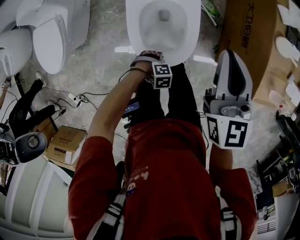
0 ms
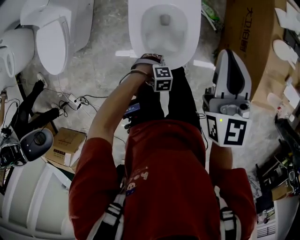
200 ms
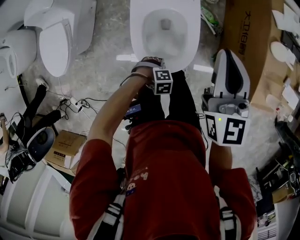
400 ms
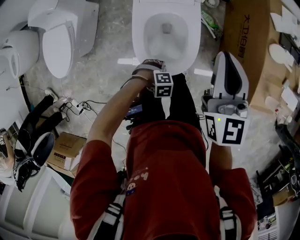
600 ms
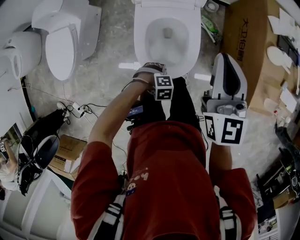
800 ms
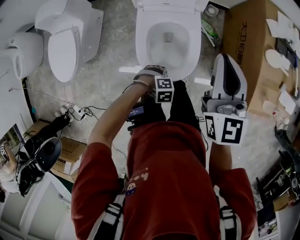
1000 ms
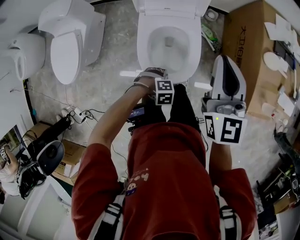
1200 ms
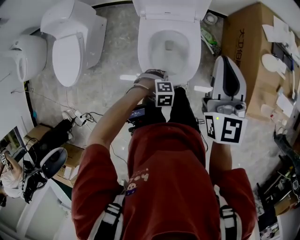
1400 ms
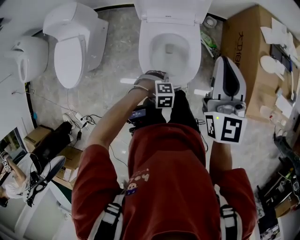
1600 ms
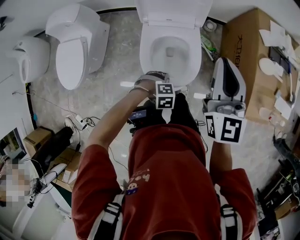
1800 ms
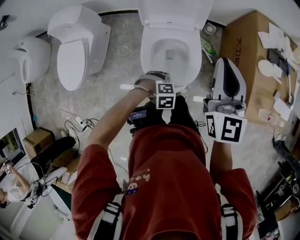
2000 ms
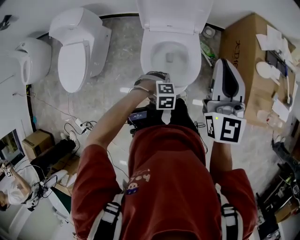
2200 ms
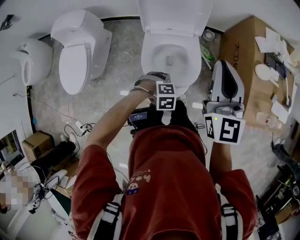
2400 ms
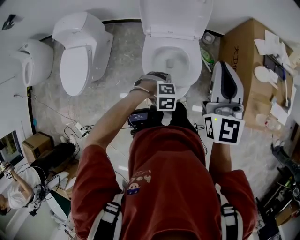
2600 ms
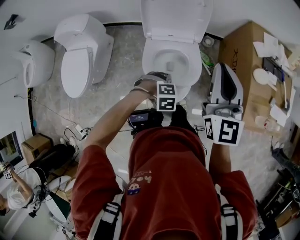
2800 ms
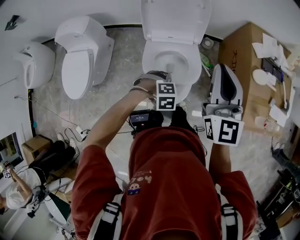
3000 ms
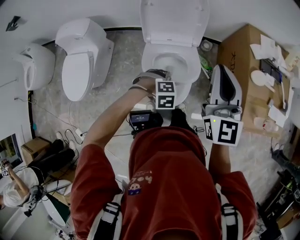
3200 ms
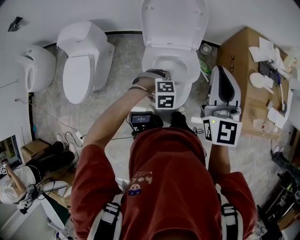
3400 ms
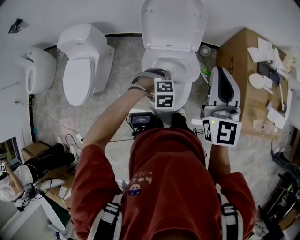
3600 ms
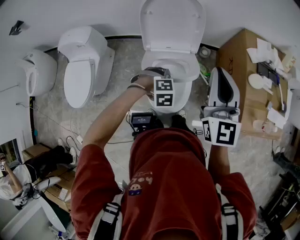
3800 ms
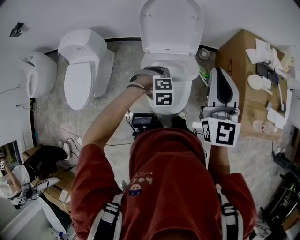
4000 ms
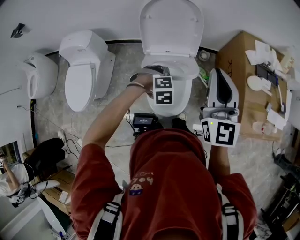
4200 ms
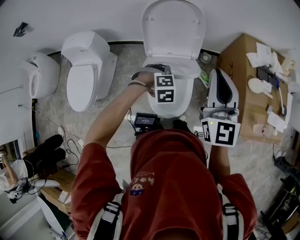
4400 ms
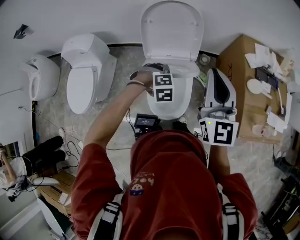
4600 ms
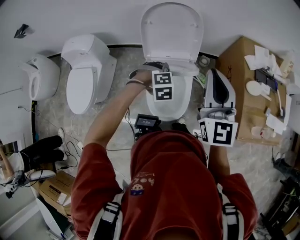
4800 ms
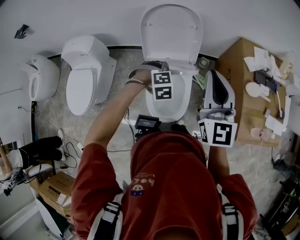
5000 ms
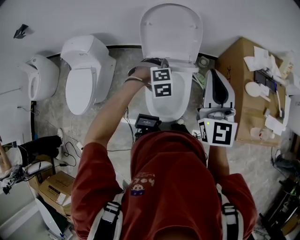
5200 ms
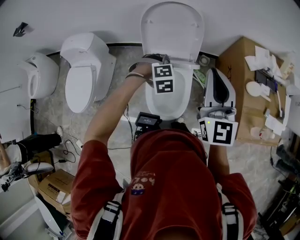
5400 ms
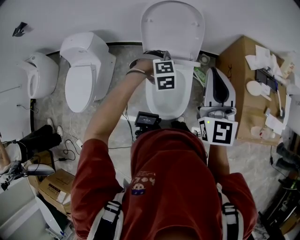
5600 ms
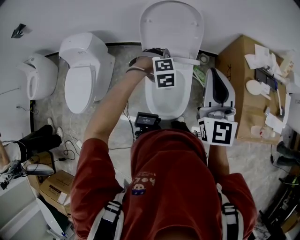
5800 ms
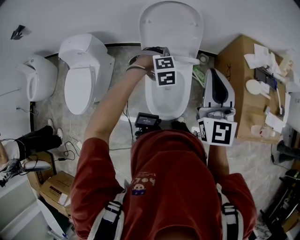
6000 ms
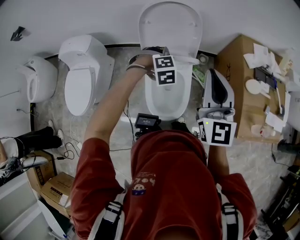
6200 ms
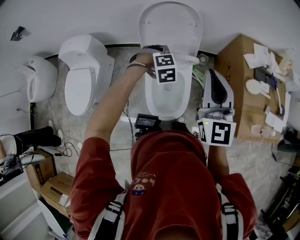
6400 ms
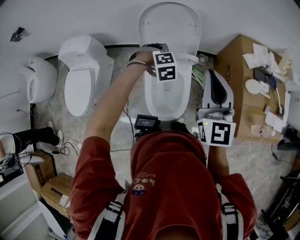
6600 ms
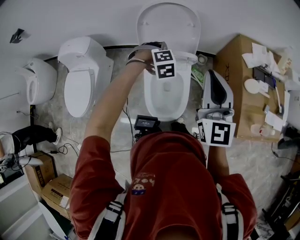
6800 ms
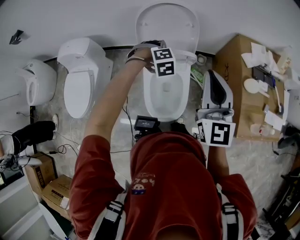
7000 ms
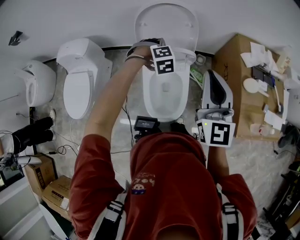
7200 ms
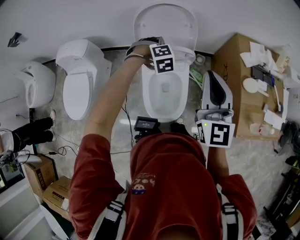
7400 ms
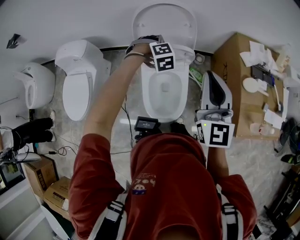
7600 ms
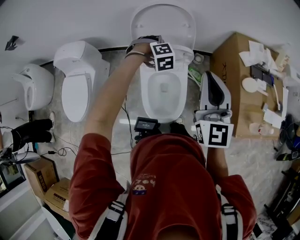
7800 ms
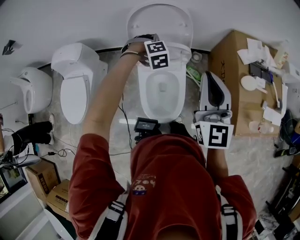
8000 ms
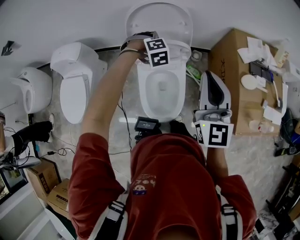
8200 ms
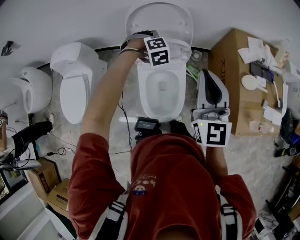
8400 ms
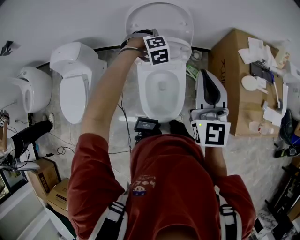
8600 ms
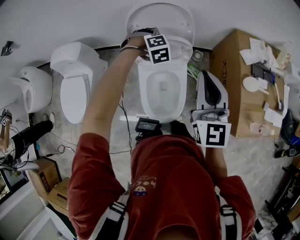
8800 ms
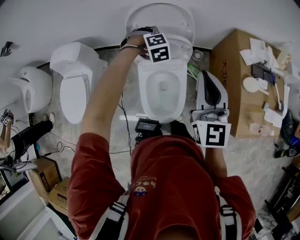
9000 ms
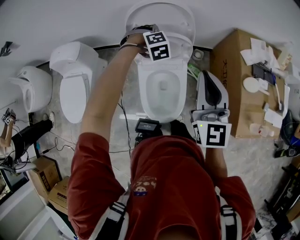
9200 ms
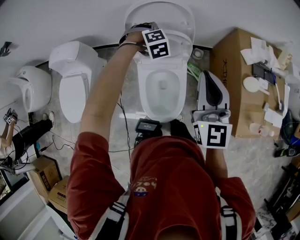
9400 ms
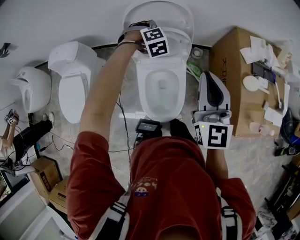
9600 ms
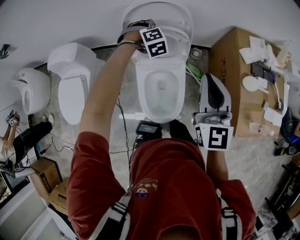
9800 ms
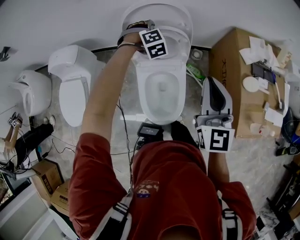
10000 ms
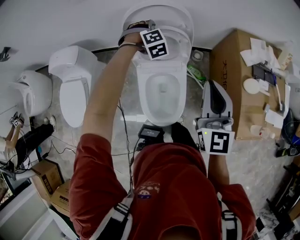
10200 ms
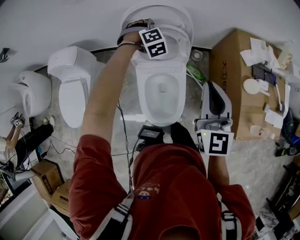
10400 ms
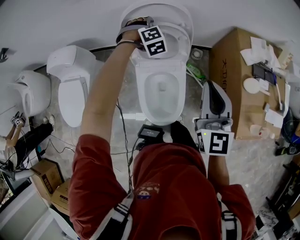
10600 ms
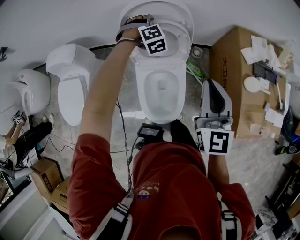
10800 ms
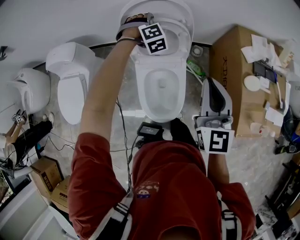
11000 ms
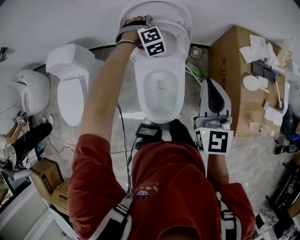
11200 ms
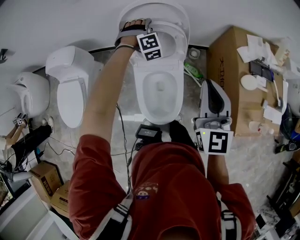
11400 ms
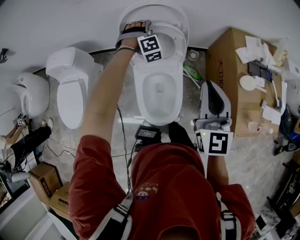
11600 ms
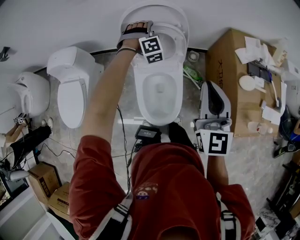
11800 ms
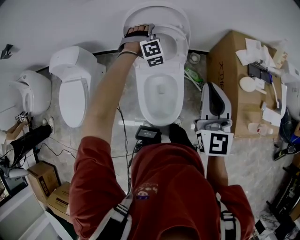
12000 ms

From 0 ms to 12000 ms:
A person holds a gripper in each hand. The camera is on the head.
From 0 ms to 1600 ms: Both grippers move upward, some 10 cm.
From 1600 ms to 3000 ms: The right gripper travels upward by about 5 cm; the left gripper goes about 10 cm upward.
From 3000 ms to 4400 ms: The left gripper moves roughly 10 cm.
From 4400 ms to 6000 ms: The left gripper is displaced forward by roughly 10 cm.
From 6000 ms to 7600 ms: The left gripper travels forward by approximately 10 cm.
From 7600 ms to 9000 ms: The left gripper shifts roughly 5 cm forward.
From 9000 ms to 10400 ms: The left gripper travels forward by about 5 cm.
From 10400 ms to 12000 ms: The grippers move only a little.

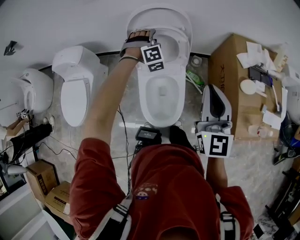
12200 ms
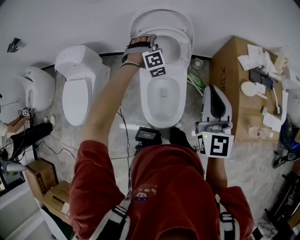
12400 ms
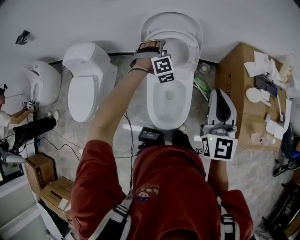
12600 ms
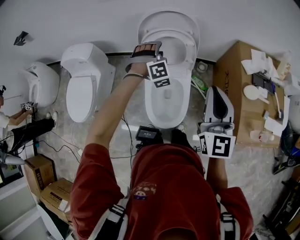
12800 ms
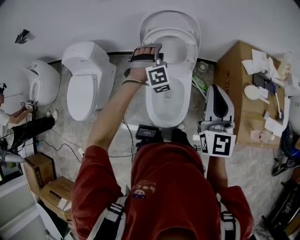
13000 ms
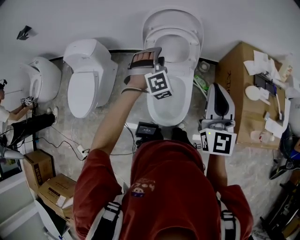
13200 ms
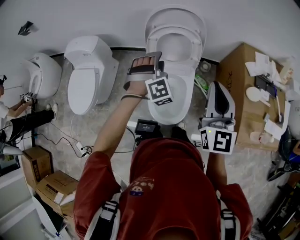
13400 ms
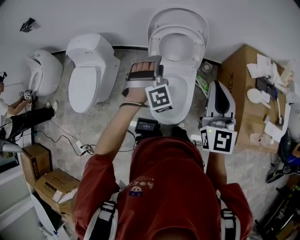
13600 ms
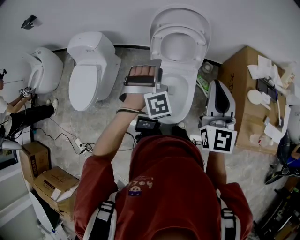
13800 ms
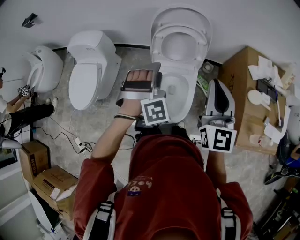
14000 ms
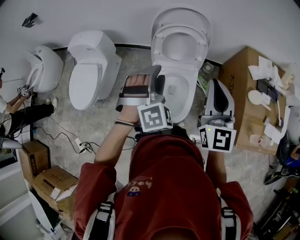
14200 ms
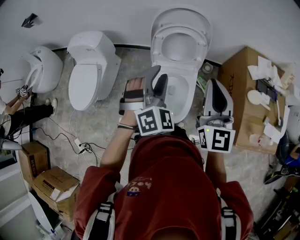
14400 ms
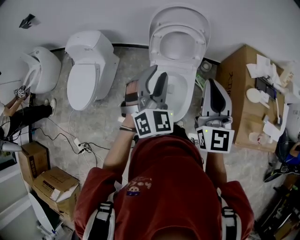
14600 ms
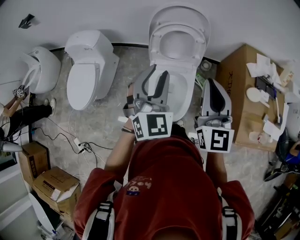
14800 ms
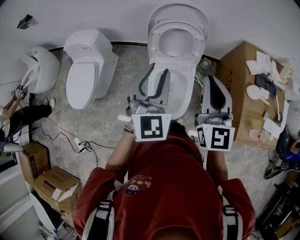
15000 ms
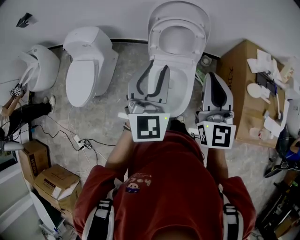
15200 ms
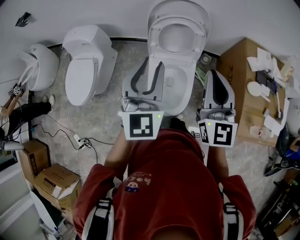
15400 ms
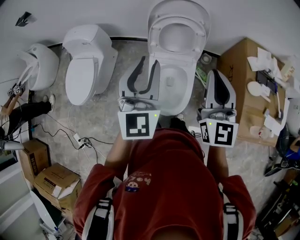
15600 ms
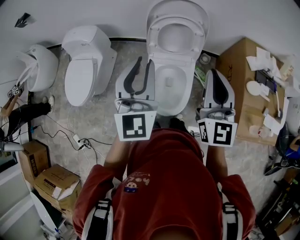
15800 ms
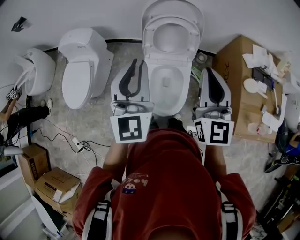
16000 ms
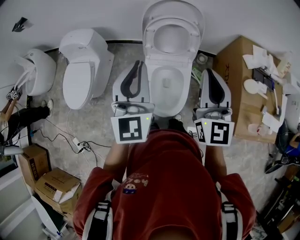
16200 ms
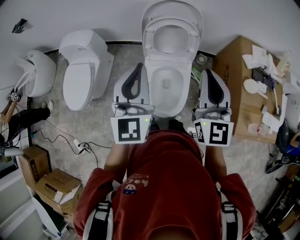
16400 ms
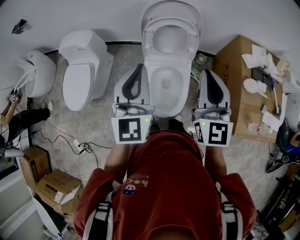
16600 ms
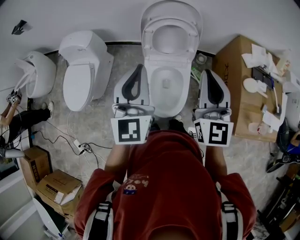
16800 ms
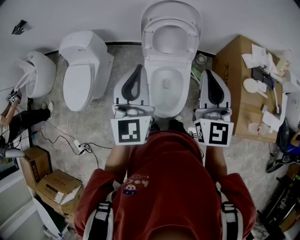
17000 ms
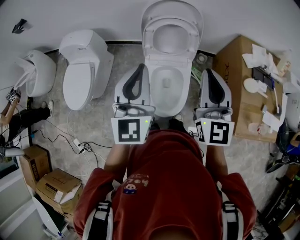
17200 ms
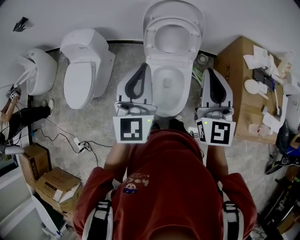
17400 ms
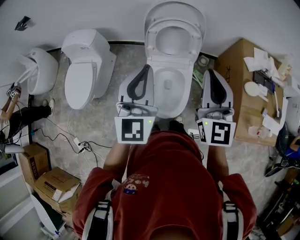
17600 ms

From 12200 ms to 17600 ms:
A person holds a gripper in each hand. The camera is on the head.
From 12200 ms to 13600 ms: The left gripper is displaced backward by approximately 20 cm.
From 13600 ms to 15000 ms: The left gripper travels upward and backward by some 15 cm, and rotates around the line of its fingers by about 50 degrees, counterclockwise from behind.
From 15000 ms to 16200 ms: The grippers stay close to where they were, moving slightly.
From 16200 ms to 17600 ms: There are only small adjustments of the grippers.

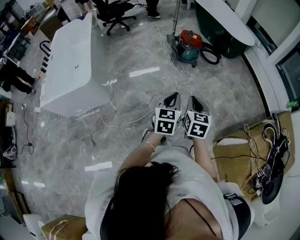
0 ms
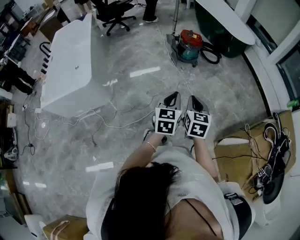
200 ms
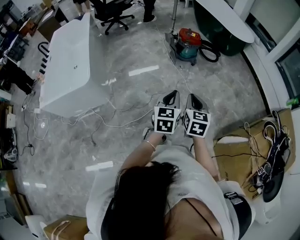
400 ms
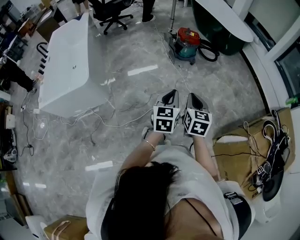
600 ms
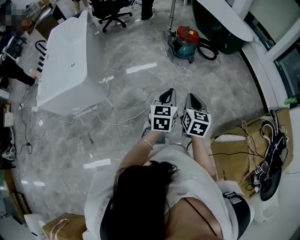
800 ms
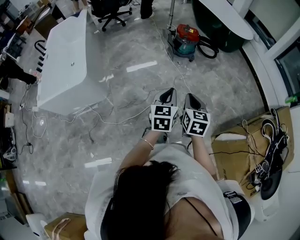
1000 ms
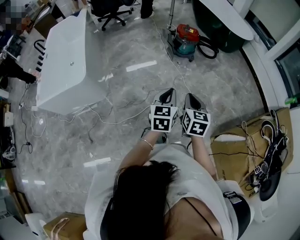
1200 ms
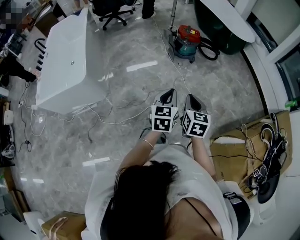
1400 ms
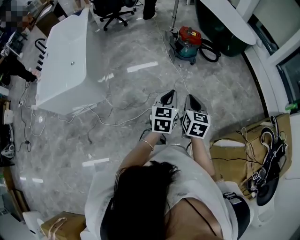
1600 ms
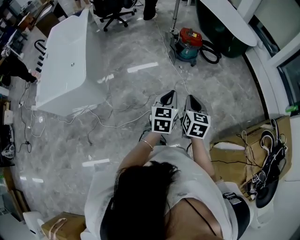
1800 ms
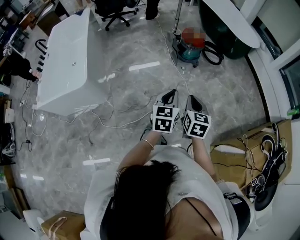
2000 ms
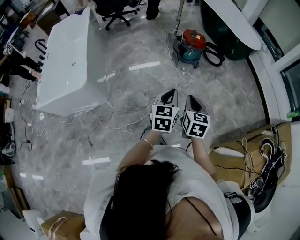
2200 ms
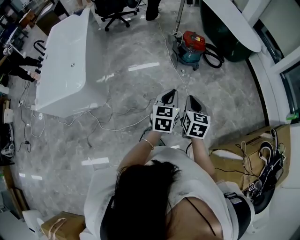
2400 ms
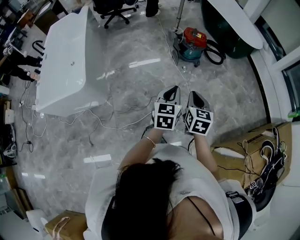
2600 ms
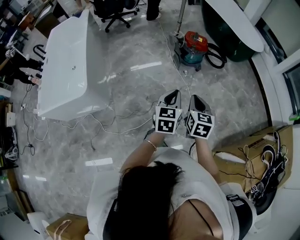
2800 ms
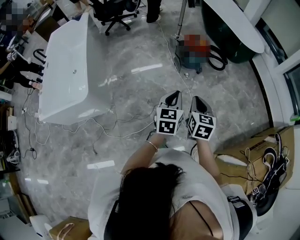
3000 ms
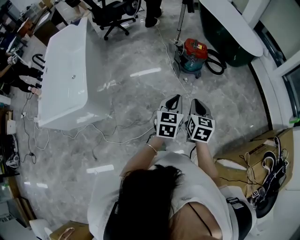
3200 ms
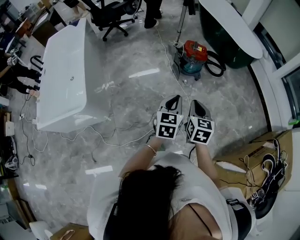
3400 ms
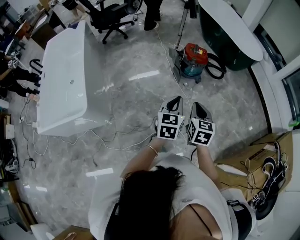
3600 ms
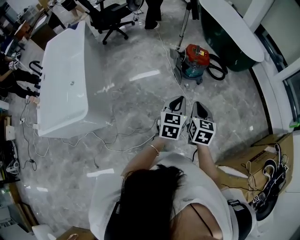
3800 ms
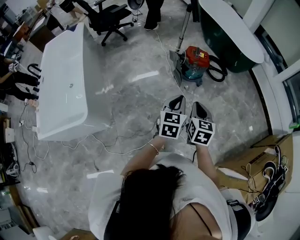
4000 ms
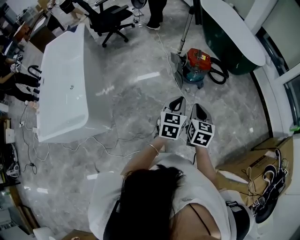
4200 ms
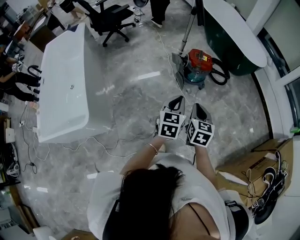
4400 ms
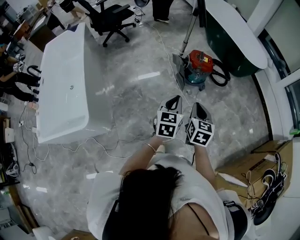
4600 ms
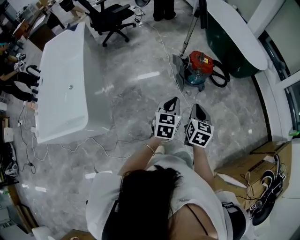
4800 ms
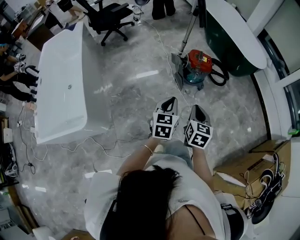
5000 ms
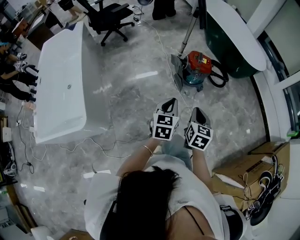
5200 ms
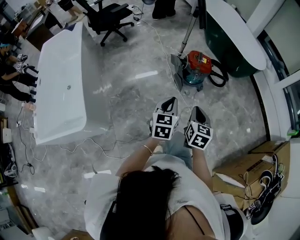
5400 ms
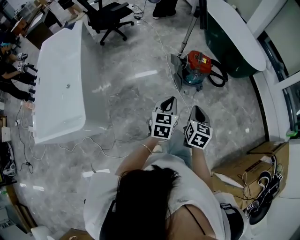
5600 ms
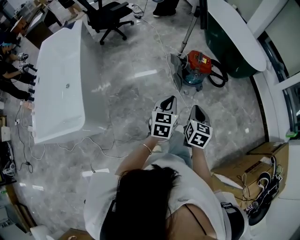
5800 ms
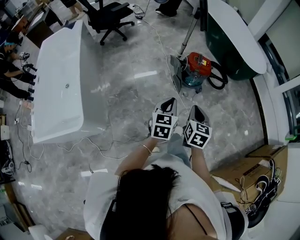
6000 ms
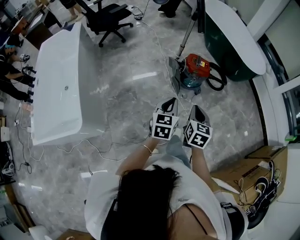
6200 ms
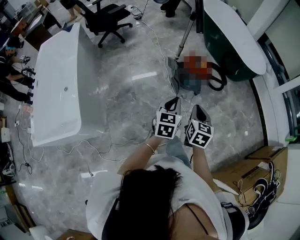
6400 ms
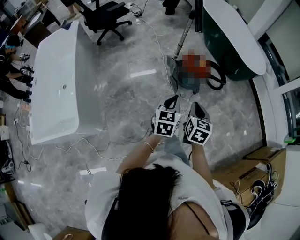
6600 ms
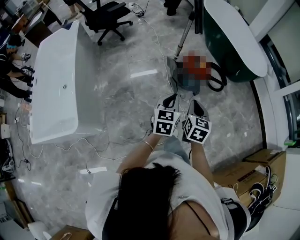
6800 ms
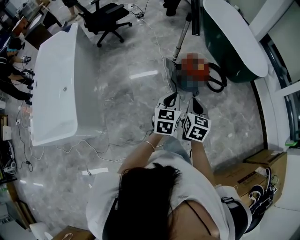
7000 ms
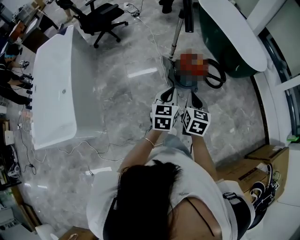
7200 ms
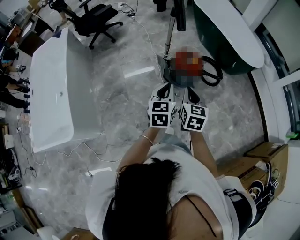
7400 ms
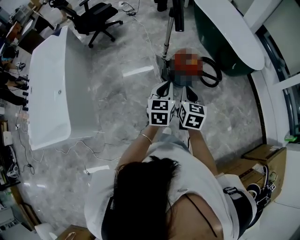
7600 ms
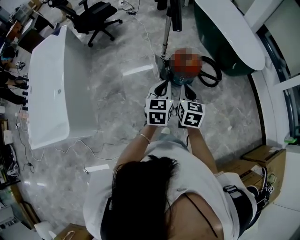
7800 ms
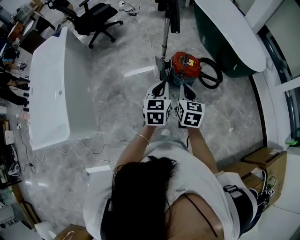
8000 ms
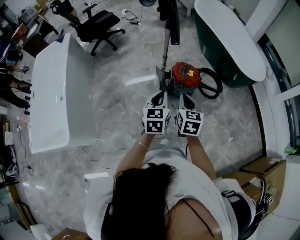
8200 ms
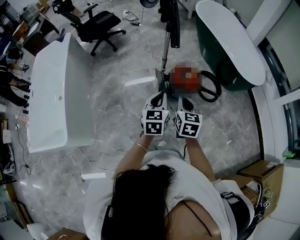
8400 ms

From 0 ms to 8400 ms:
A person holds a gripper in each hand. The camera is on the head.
From 0 ms to 1400 ms: The grippers move only a little.
From 1400 ms to 2800 ms: Both grippers move forward, about 15 cm.
From 2800 ms to 4200 ms: Both grippers move forward and to the left, approximately 20 cm.
From 4200 ms to 5600 ms: The left gripper is displaced to the left by some 5 cm.
From 5600 ms to 7000 ms: The left gripper travels forward and to the right by roughly 15 cm. The right gripper moves forward, approximately 15 cm.
From 7000 ms to 8400 ms: The grippers both shift forward and to the right by some 15 cm.
